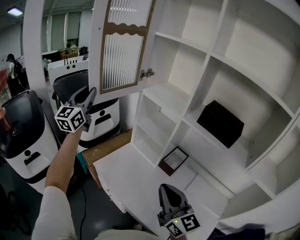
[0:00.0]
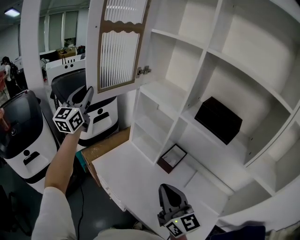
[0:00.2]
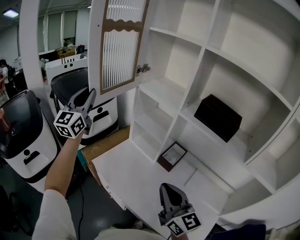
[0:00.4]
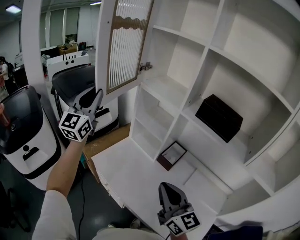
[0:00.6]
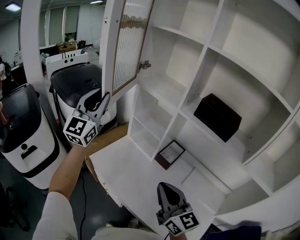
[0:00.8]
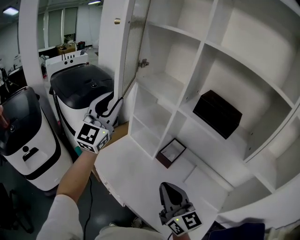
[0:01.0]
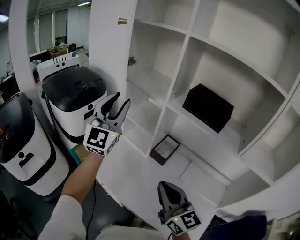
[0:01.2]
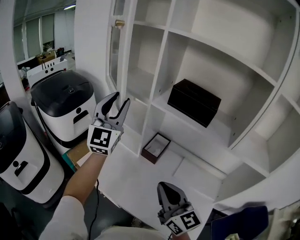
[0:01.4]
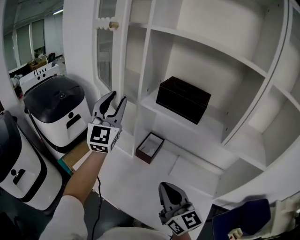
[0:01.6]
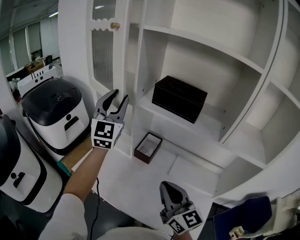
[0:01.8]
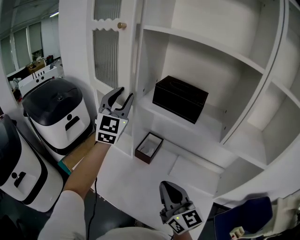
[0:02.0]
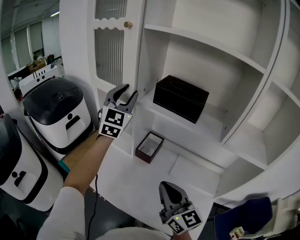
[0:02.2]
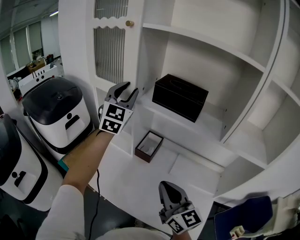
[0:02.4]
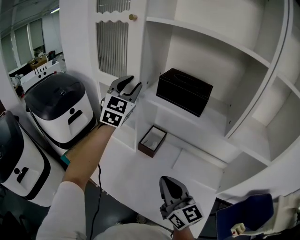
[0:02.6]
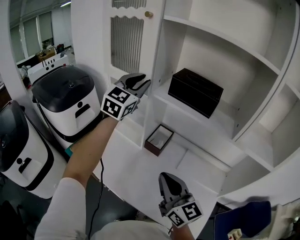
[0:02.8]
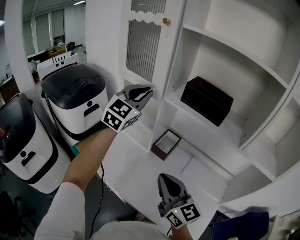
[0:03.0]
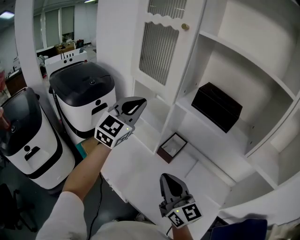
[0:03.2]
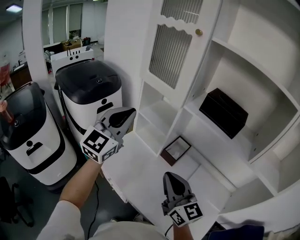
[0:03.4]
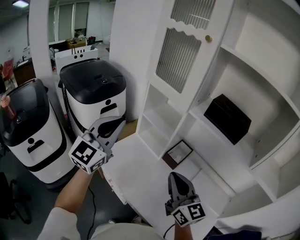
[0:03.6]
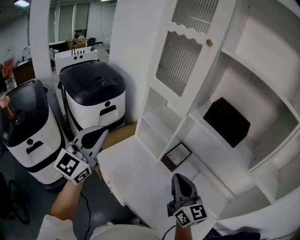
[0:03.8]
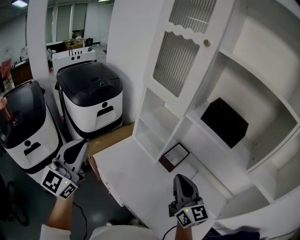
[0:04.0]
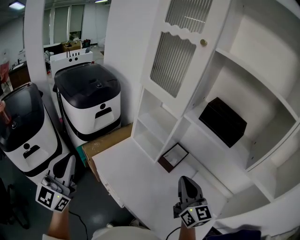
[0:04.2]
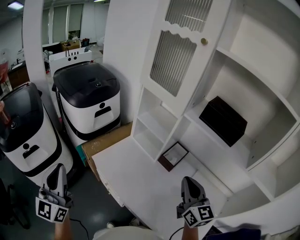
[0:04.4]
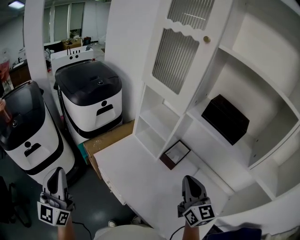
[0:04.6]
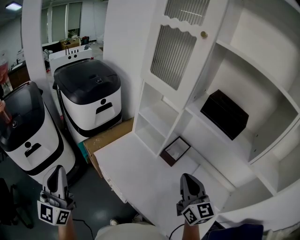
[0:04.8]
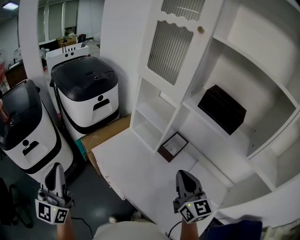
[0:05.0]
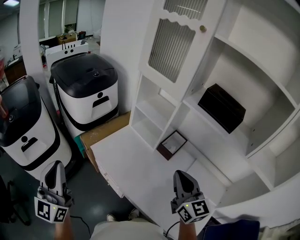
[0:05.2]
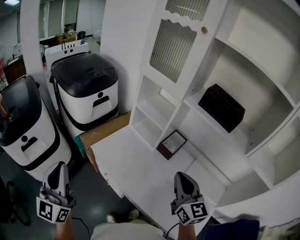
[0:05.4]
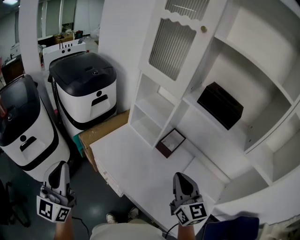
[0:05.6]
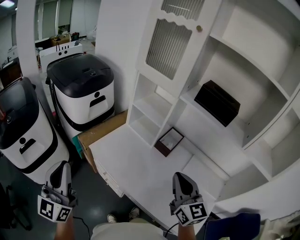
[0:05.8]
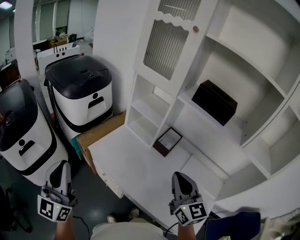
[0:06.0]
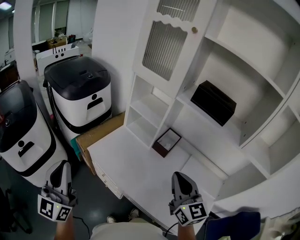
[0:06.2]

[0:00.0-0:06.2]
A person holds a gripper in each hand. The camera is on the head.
0:00.0 to 0:01.6: The left gripper heads to the right, covering about 35 cm; the right gripper travels to the right by roughly 10 cm.
0:01.6 to 0:03.2: The right gripper shifts approximately 10 cm to the left.
0:03.2 to 0:04.6: The left gripper is displaced to the left and backward by some 40 cm, and changes its angle by approximately 40 degrees, while the right gripper shifts about 5 cm to the right.
0:04.6 to 0:06.2: The right gripper is displaced backward by roughly 5 cm.

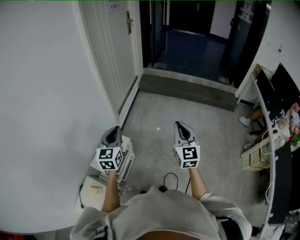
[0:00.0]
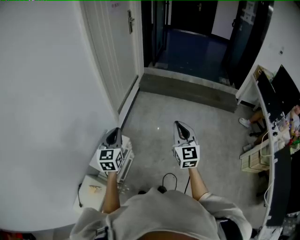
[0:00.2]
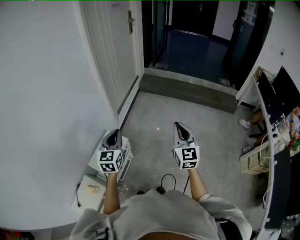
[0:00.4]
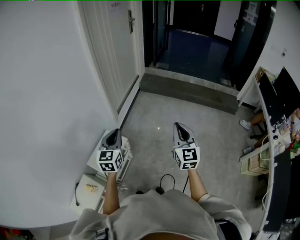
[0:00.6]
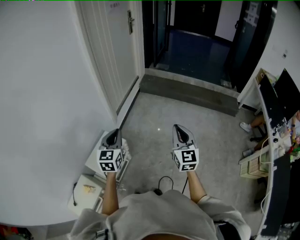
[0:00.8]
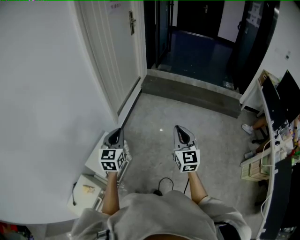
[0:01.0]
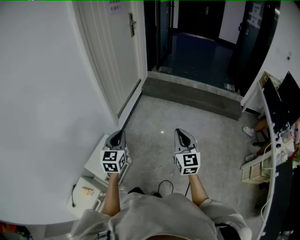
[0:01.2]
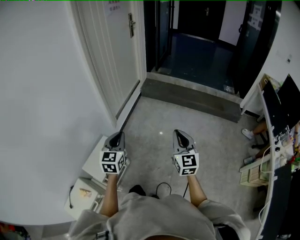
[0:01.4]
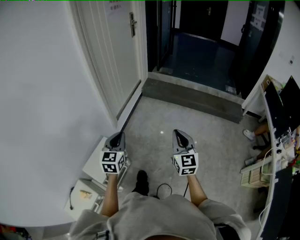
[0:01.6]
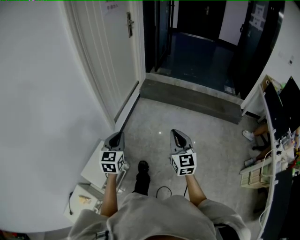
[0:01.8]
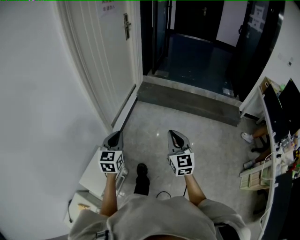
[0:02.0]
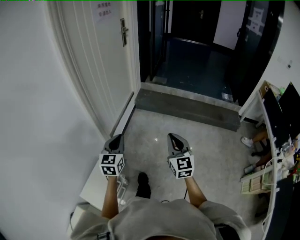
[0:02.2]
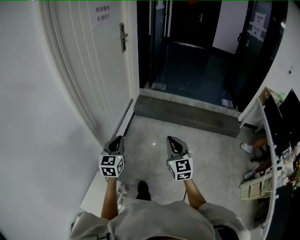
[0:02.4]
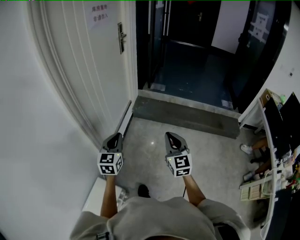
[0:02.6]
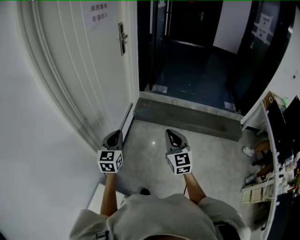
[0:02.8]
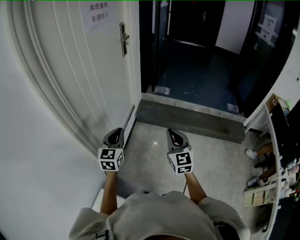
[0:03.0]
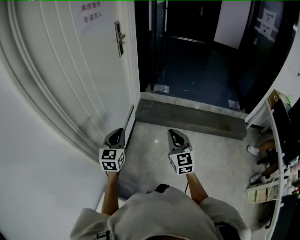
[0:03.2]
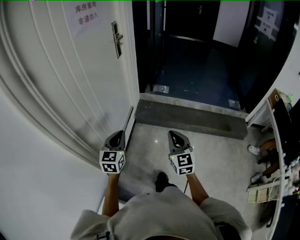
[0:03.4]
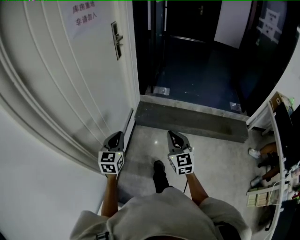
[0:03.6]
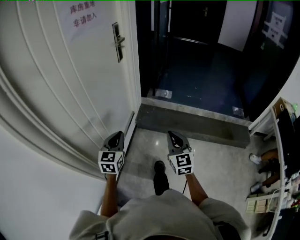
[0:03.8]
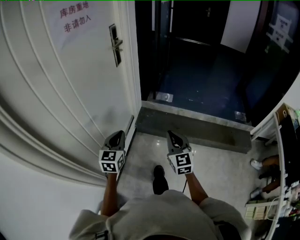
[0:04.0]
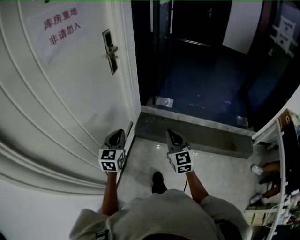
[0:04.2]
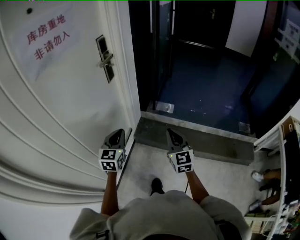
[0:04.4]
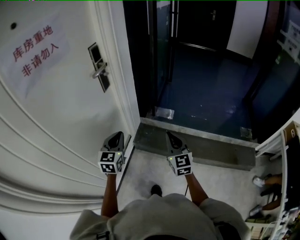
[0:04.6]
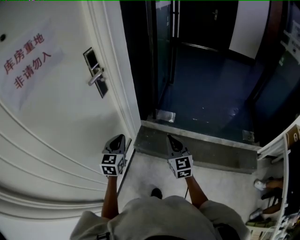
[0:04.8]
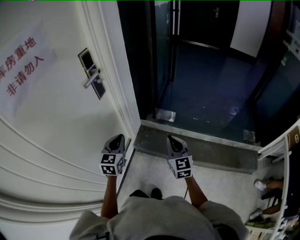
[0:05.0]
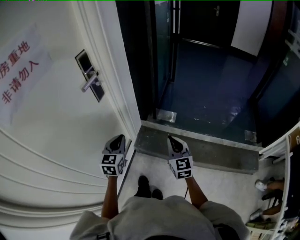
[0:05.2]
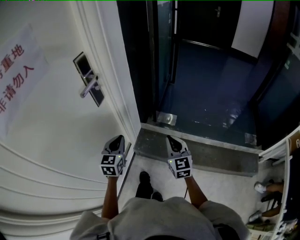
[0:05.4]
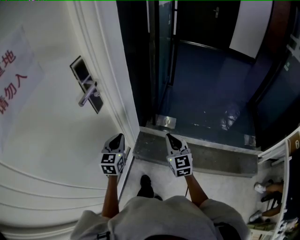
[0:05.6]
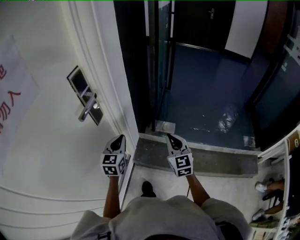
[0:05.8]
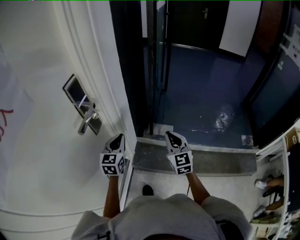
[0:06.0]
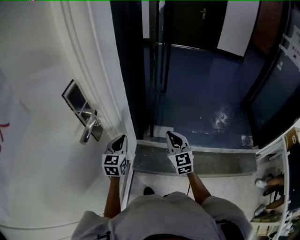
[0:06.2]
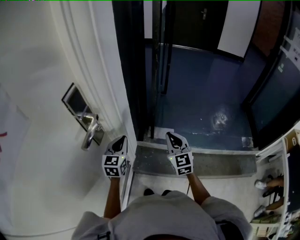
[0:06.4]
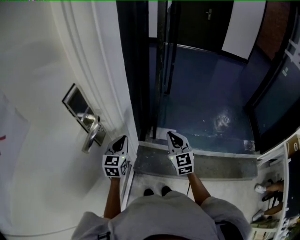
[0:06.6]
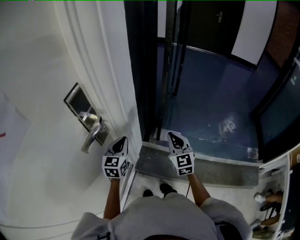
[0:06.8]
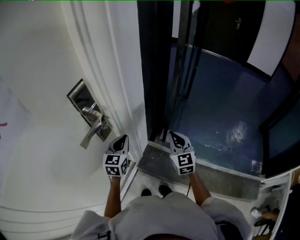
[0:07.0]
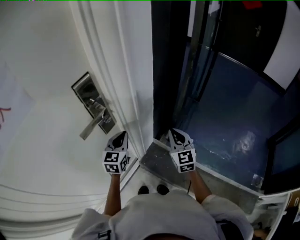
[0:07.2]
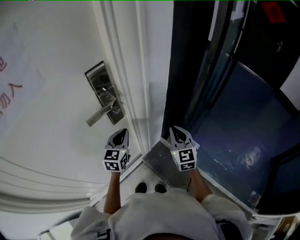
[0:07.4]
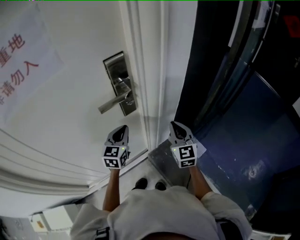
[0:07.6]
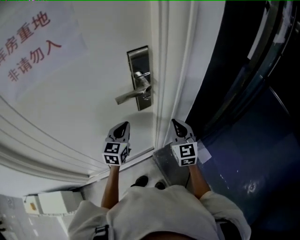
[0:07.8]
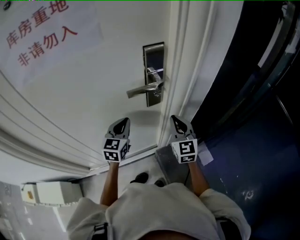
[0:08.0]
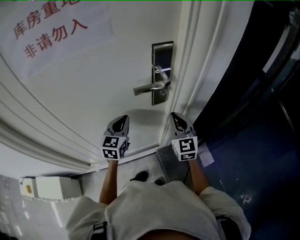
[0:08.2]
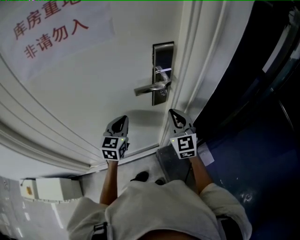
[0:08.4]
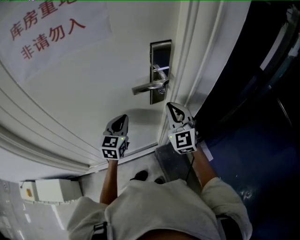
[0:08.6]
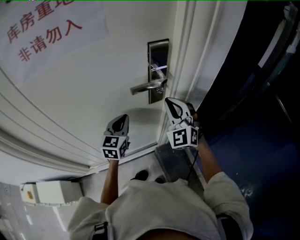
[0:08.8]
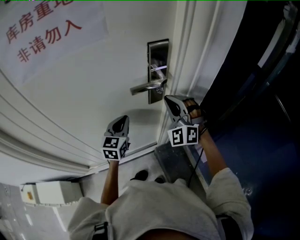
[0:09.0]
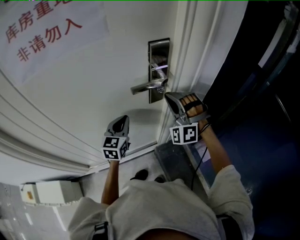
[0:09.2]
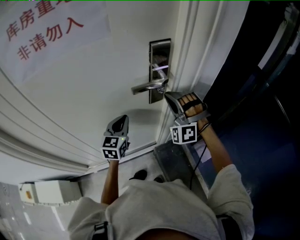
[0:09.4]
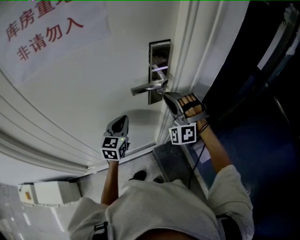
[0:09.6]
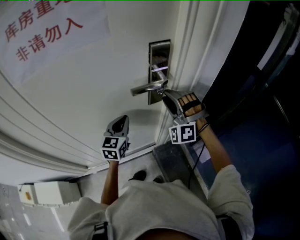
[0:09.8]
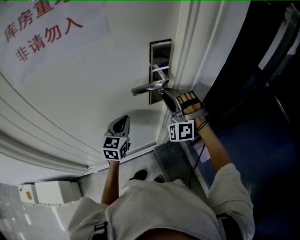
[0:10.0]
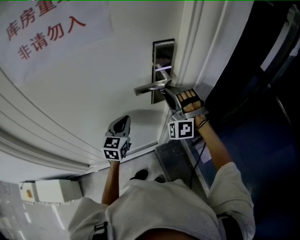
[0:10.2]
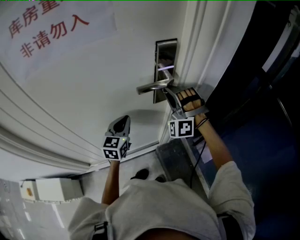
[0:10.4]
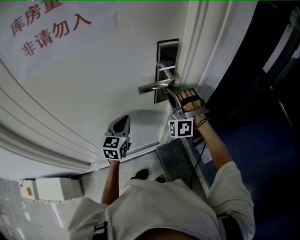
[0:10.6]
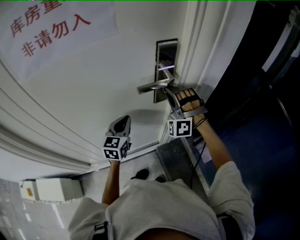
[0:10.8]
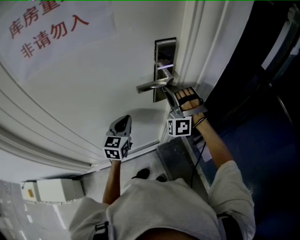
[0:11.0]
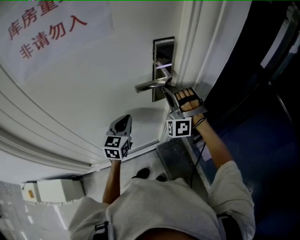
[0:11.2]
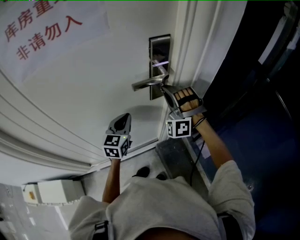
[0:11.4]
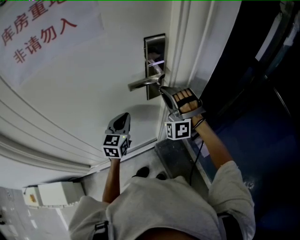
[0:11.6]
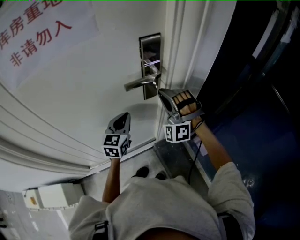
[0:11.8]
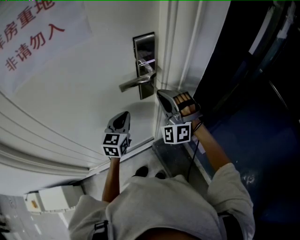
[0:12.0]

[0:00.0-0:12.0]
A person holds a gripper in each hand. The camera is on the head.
0:00.0 to 0:01.6: The right gripper is displaced forward and to the right by about 10 cm, while the left gripper heads to the right and forward, covering about 10 cm.
0:01.6 to 0:03.0: The two grippers travel together, forward, roughly 50 cm.
0:03.0 to 0:04.4: Both grippers are carried forward, about 40 cm.
0:04.4 to 0:06.0: Both grippers travel together forward, approximately 35 cm.
0:06.0 to 0:07.6: The left gripper ends up roughly 10 cm from where it was, and rotates about 40 degrees; the right gripper shifts by approximately 20 cm, and changes its angle by about 40 degrees.
0:07.6 to 0:09.0: The right gripper heads to the left, upward and forward, covering approximately 15 cm, and rotates around the line of its fingers by roughly 60 degrees, counterclockwise from behind, while the left gripper heads to the left, covering some 10 cm.
0:09.0 to 0:10.4: The right gripper changes its angle by roughly 20 degrees, and opens, then closes again.
0:10.4 to 0:12.0: The right gripper changes place by about 5 cm; the left gripper is displaced to the right by about 5 cm.

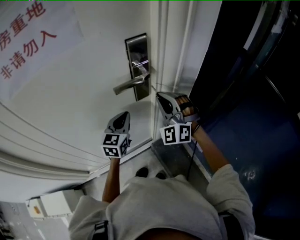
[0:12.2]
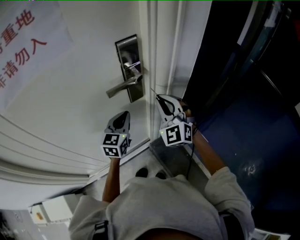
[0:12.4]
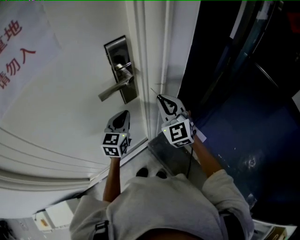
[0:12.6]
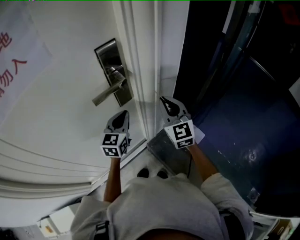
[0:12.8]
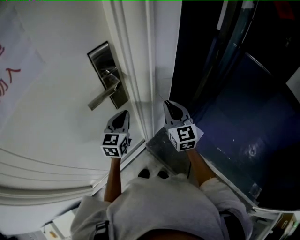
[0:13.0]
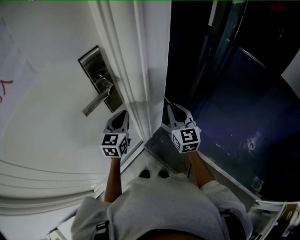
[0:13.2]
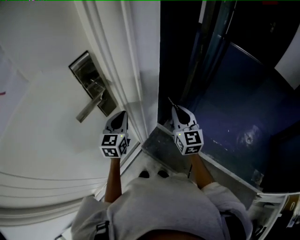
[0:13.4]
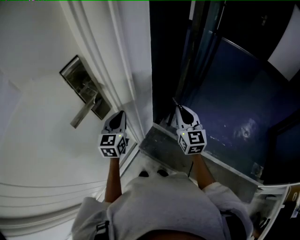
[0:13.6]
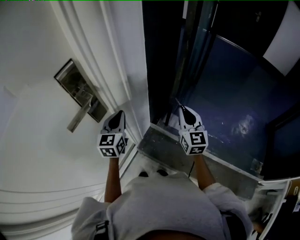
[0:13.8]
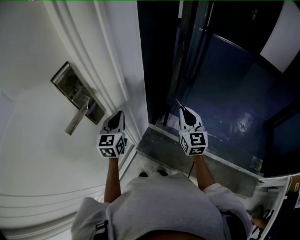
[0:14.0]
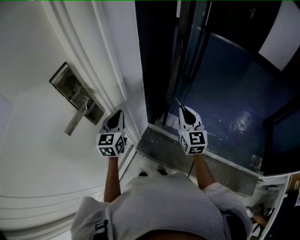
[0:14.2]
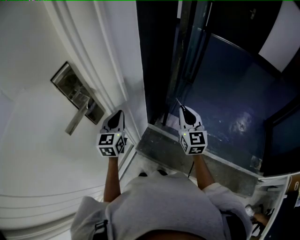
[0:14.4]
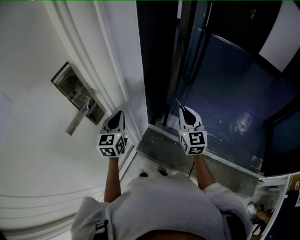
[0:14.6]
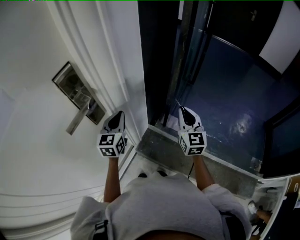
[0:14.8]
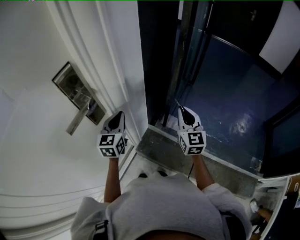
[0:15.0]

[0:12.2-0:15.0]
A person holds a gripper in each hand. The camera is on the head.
0:12.2 to 0:13.6: The right gripper moves some 25 cm, and twists some 60 degrees clockwise, seen from behind; the left gripper changes place by some 15 cm, and changes its angle by roughly 20 degrees.
0:13.6 to 0:15.0: The grippers stay close to where they were, moving slightly.

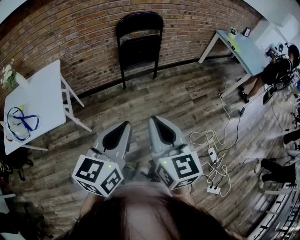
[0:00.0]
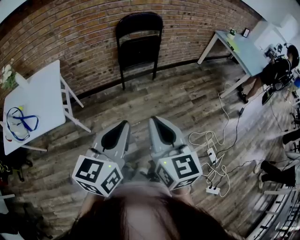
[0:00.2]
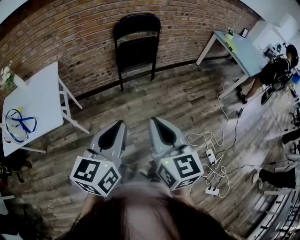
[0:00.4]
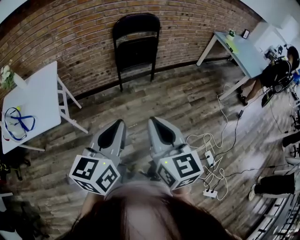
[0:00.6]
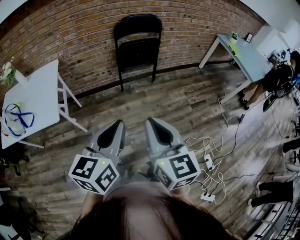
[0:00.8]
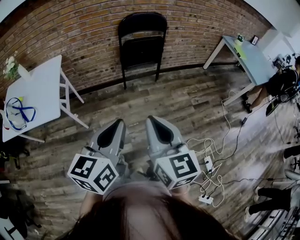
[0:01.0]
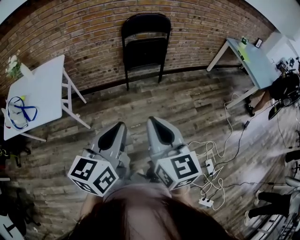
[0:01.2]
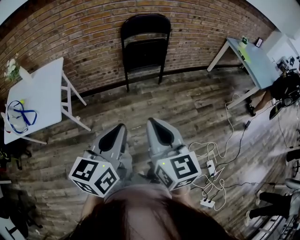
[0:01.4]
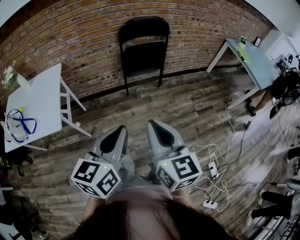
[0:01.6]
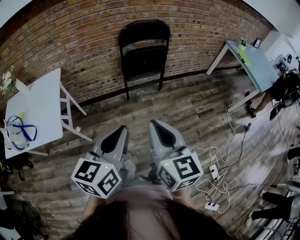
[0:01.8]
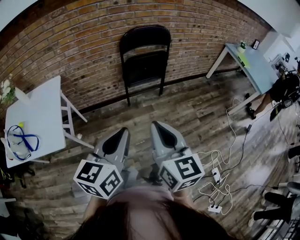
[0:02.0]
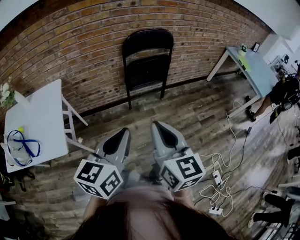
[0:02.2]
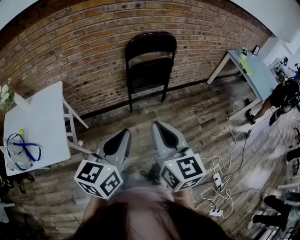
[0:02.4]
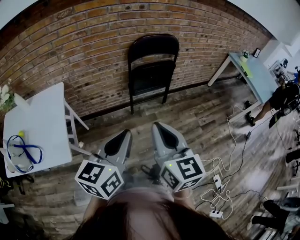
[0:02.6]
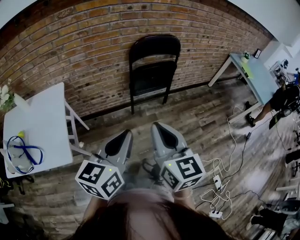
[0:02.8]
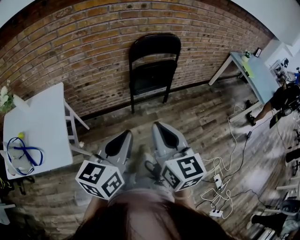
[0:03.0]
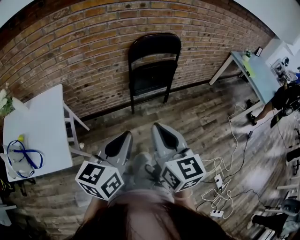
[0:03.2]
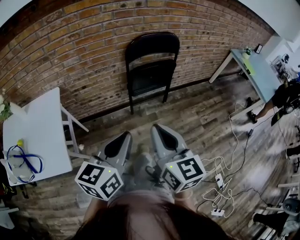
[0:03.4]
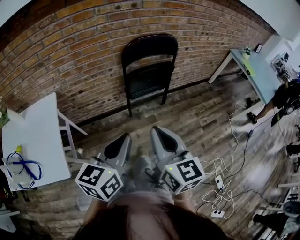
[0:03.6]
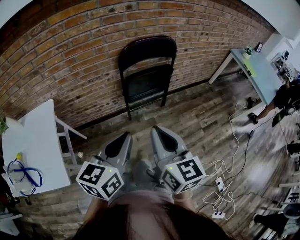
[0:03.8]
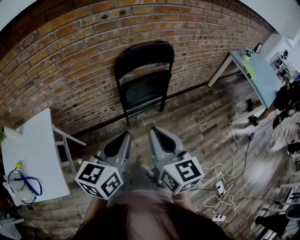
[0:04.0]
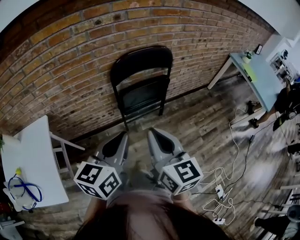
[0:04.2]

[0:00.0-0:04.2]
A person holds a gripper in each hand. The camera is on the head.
0:00.0 to 0:01.4: The right gripper ends up roughly 5 cm from where it was; the left gripper moves approximately 5 cm.
0:01.4 to 0:02.8: The grippers both shift forward and to the left by approximately 20 cm.
0:02.8 to 0:04.2: The grippers both shift forward by some 20 cm.
